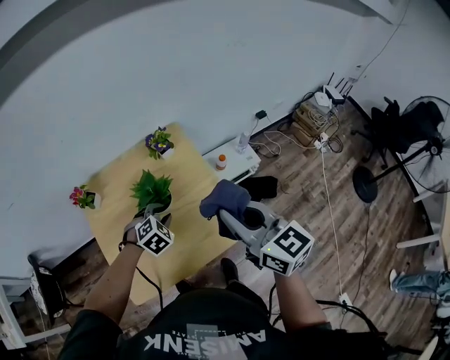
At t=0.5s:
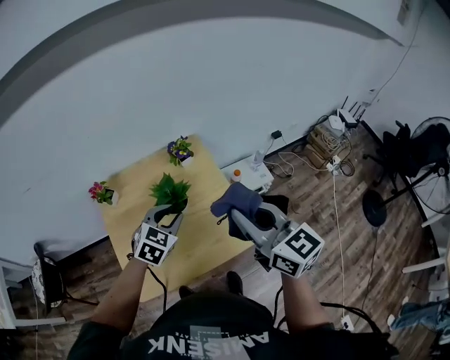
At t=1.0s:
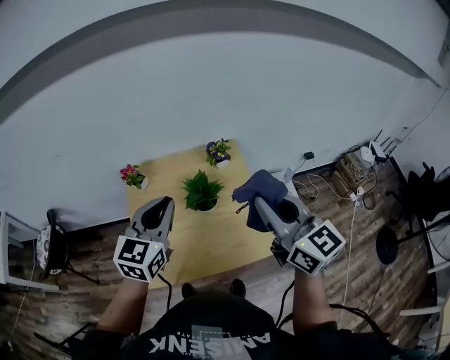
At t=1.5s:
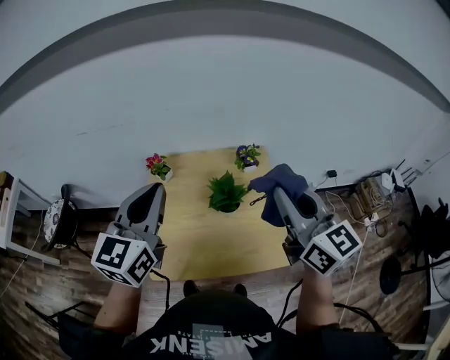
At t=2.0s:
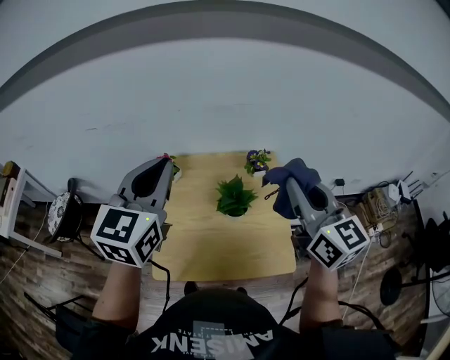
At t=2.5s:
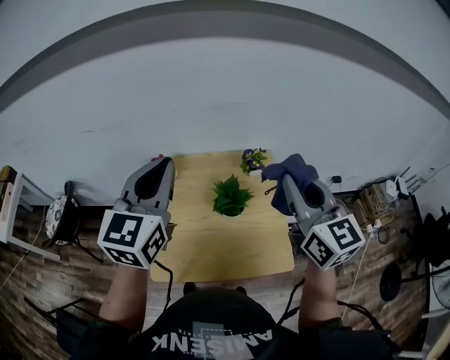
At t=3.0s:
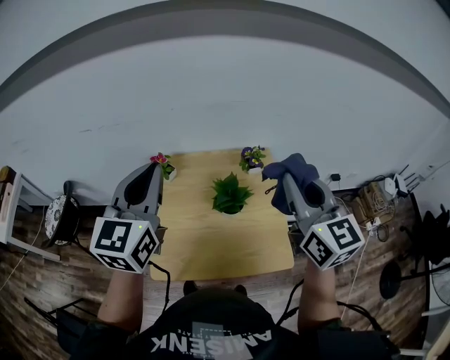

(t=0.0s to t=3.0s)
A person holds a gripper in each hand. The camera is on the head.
t=0.0s - t=1.5s: The right gripper moves upward and to the left, roughly 15 cm; the left gripper goes about 40 cm upward and to the left, angles its fingers upward, by roughly 60 degrees, and closes up.
t=1.5s - t=3.0s: The grippers make only small movements.

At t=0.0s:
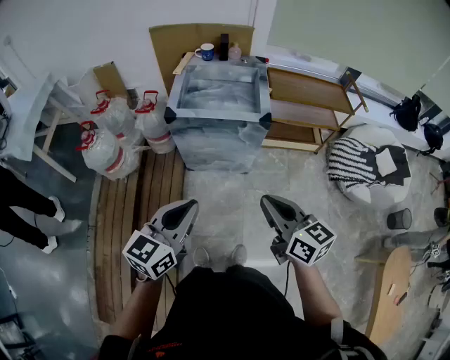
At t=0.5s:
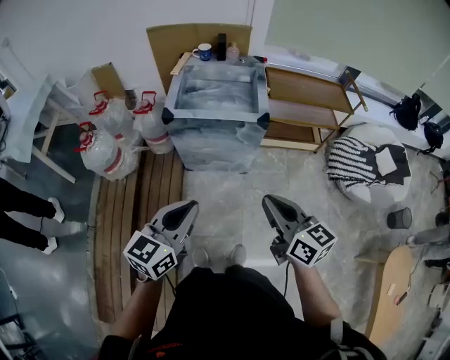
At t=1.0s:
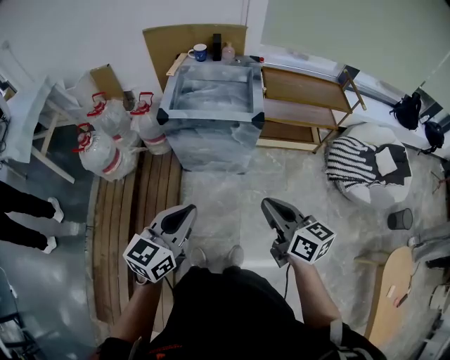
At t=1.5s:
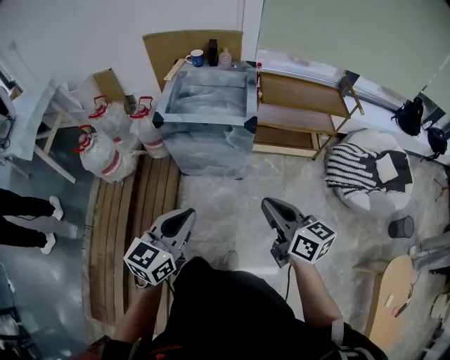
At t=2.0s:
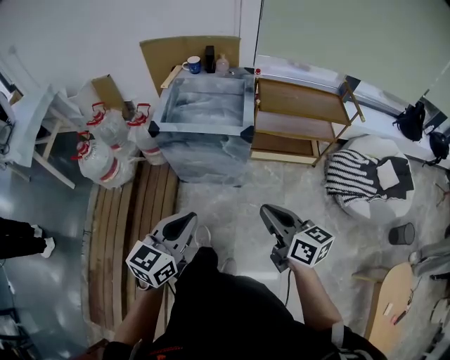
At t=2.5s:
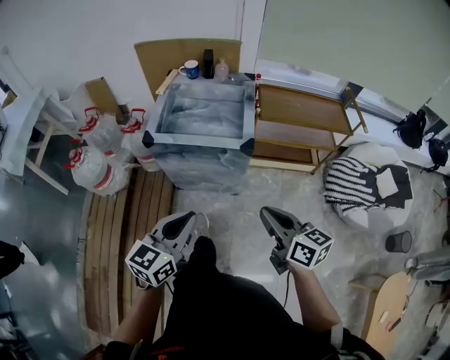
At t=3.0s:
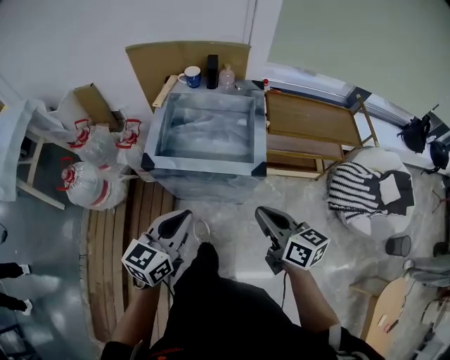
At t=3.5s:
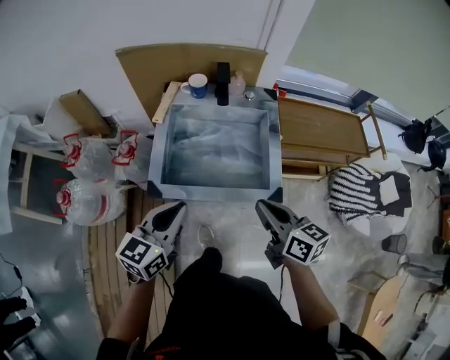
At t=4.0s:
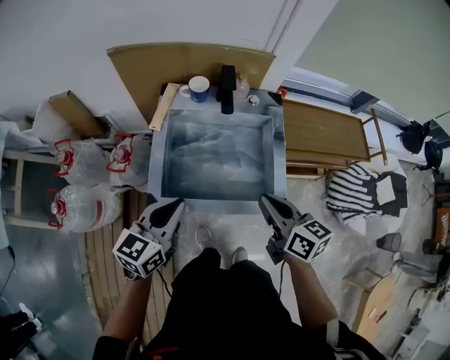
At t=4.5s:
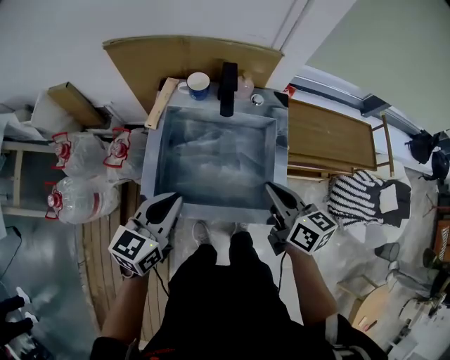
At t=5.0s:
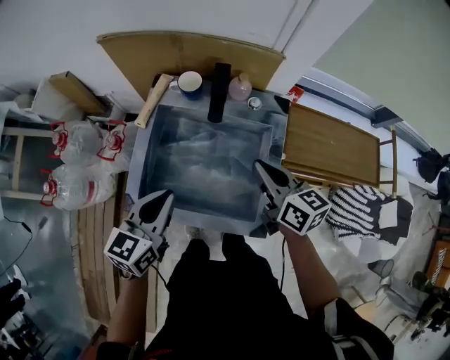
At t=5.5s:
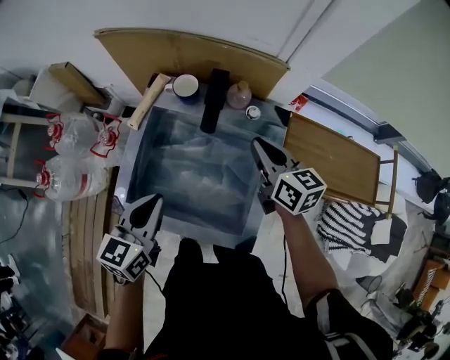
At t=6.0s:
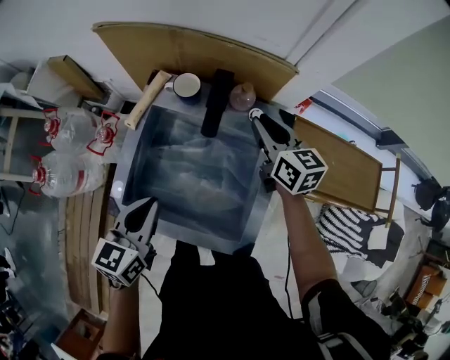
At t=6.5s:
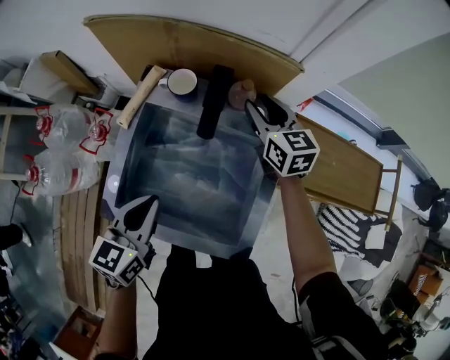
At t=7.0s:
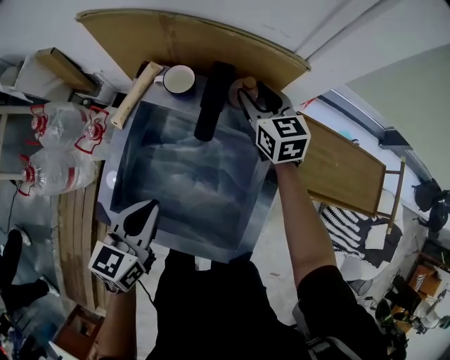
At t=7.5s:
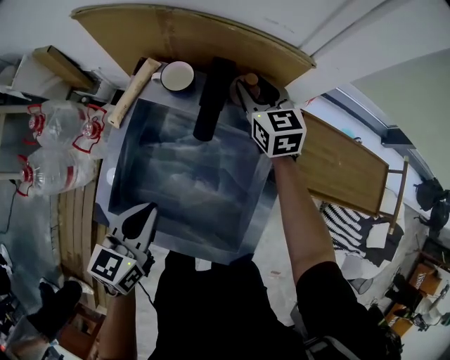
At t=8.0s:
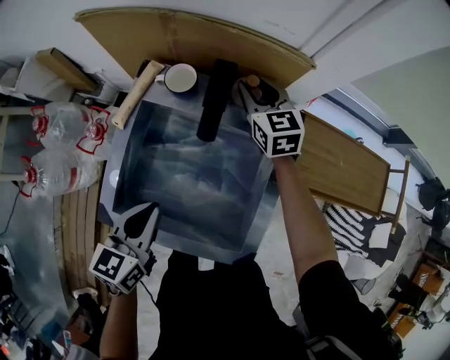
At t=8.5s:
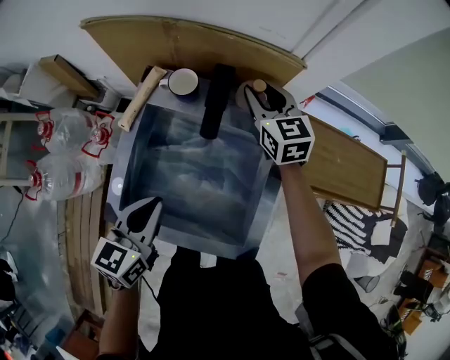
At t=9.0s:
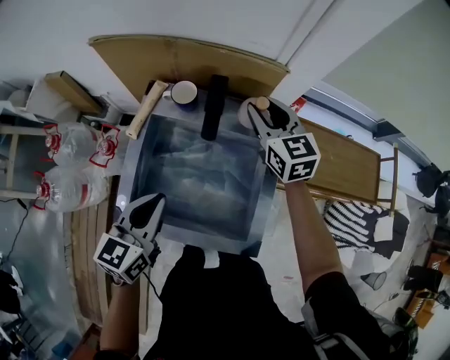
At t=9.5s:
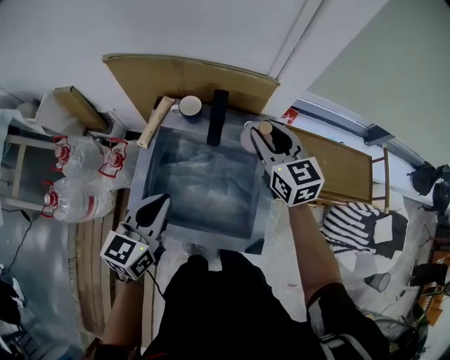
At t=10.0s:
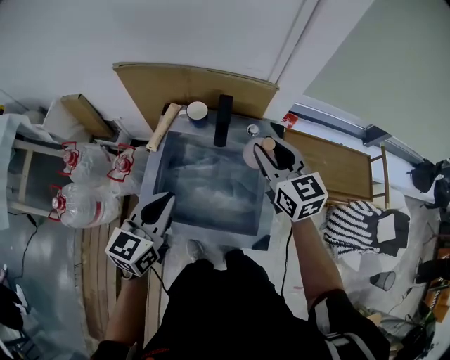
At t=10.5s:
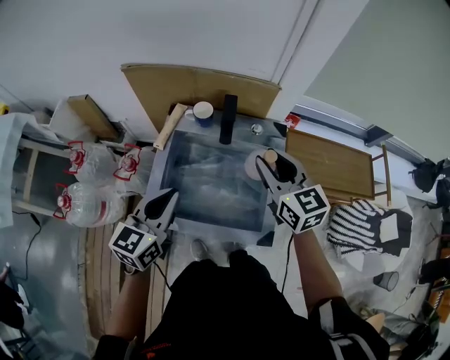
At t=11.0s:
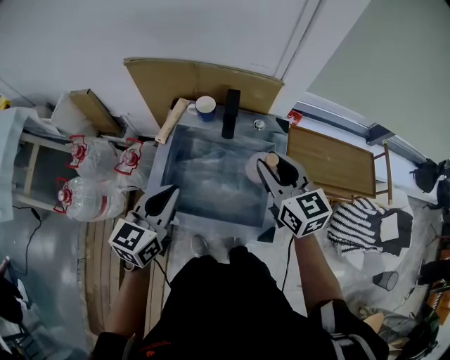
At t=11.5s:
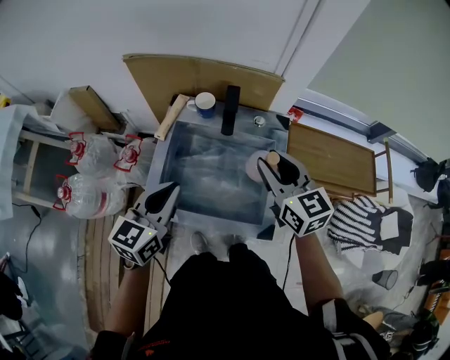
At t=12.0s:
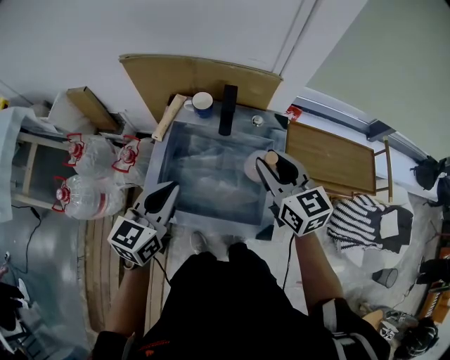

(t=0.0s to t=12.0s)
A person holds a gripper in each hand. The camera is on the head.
t=0.0s - t=2.0s: The grippers both shift to the right by about 10 cm.
t=2.0s - t=4.0s: Both grippers are carried forward, about 50 cm.
t=4.0s - t=6.0s: The right gripper heads forward, covering approximately 35 cm; the left gripper travels forward and to the right by some 10 cm, and swivels approximately 30 degrees.
t=6.0s - t=8.0s: The left gripper shifts by roughly 5 cm. The right gripper heads forward and downward, covering roughly 10 cm, and swivels some 20 degrees.
t=8.0s - t=10.0s: The left gripper travels upward by approximately 15 cm; the right gripper moves backward and upward, about 30 cm.
t=10.0s - t=12.0s: The right gripper goes roughly 5 cm backward.

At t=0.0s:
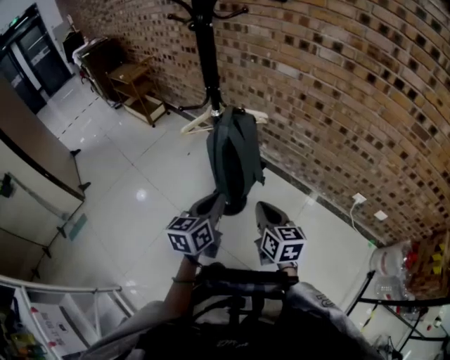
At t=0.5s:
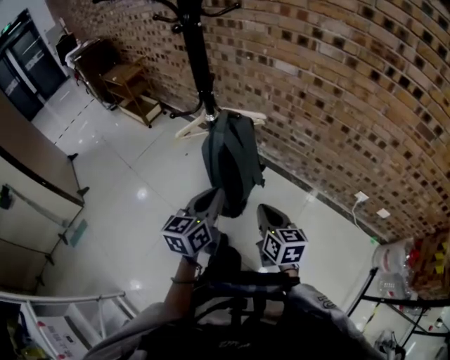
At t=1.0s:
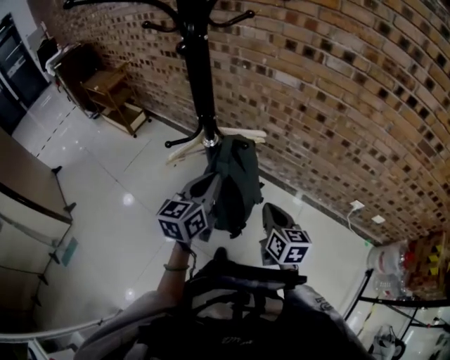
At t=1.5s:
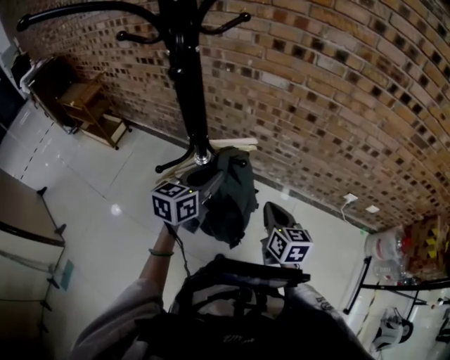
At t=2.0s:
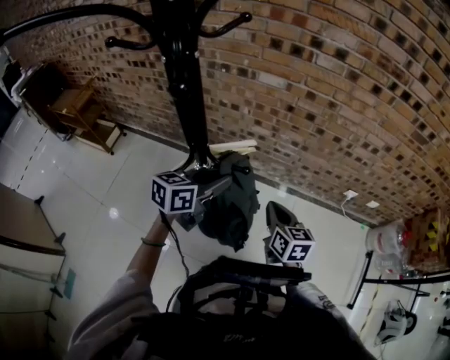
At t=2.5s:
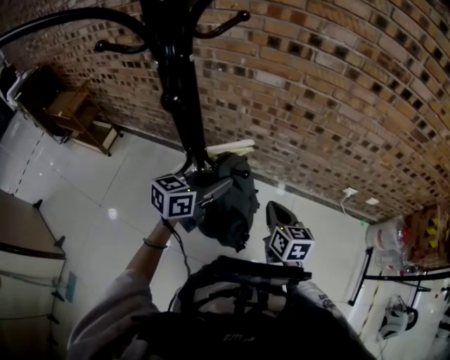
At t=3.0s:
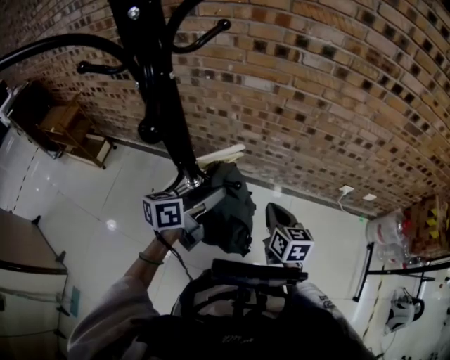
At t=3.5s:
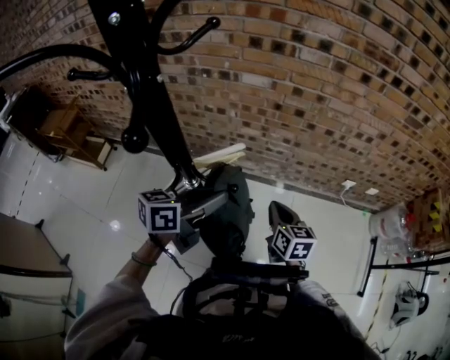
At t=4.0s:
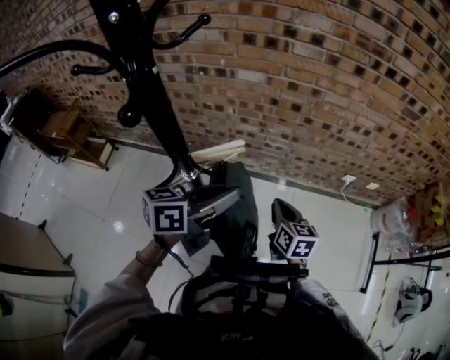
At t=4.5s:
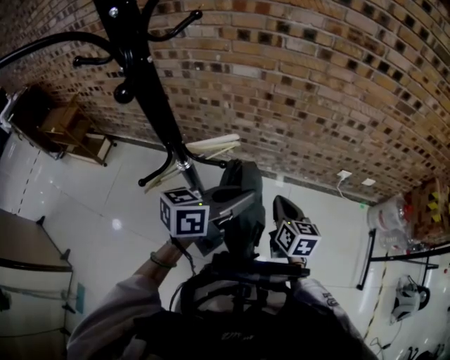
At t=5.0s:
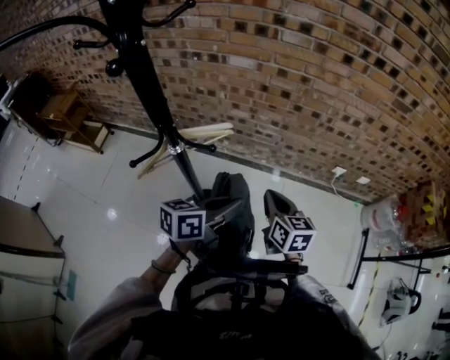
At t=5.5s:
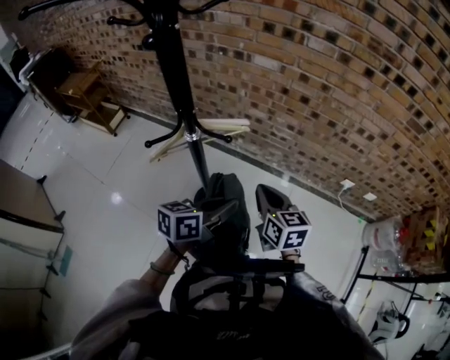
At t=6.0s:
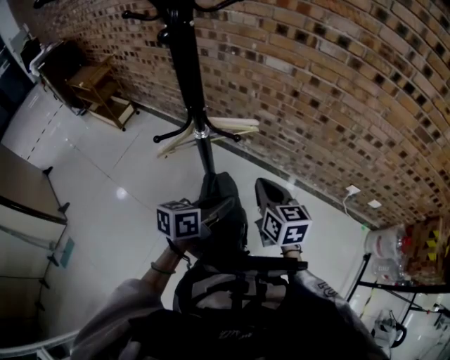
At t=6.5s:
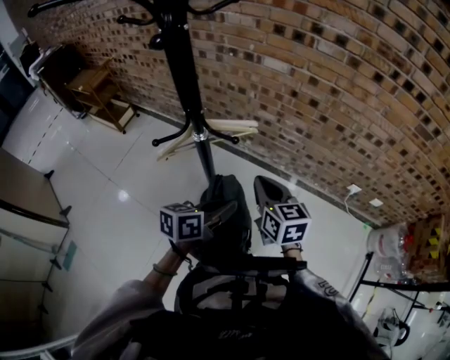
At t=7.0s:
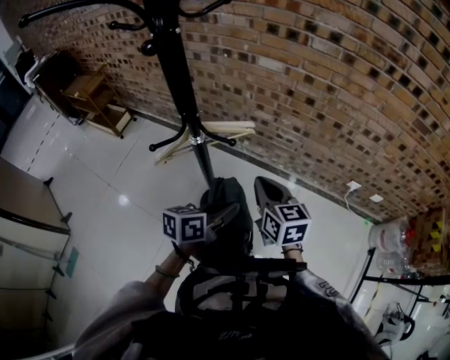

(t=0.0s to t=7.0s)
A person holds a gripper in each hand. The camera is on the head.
t=0.0s - t=2.0s: The left gripper ends up about 30 cm from where it was, rotates about 40 degrees, and opens. Meanwhile the right gripper moves roughly 20 cm, and turns by some 20 degrees.
t=2.0s - t=3.5s: The left gripper changes place by roughly 5 cm.
t=3.5s - t=5.0s: The right gripper is displaced to the right by some 5 cm. Meanwhile the left gripper is displaced to the right by about 15 cm.
t=5.0s - t=7.0s: The left gripper ends up roughly 5 cm from where it was; the right gripper moves to the left, some 10 cm.

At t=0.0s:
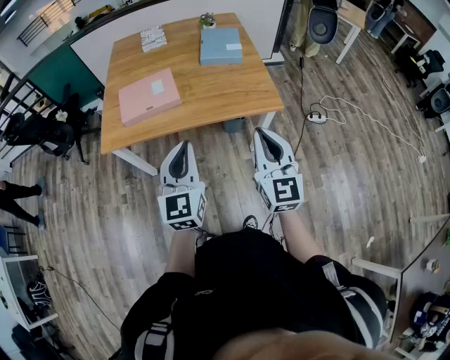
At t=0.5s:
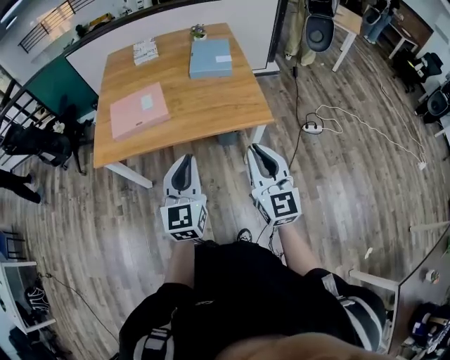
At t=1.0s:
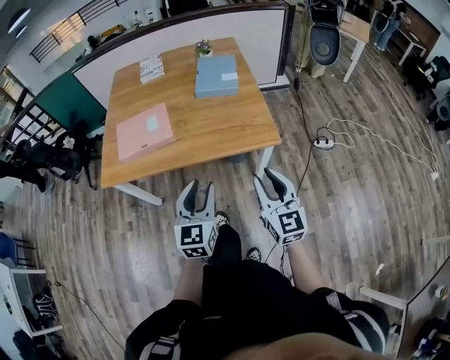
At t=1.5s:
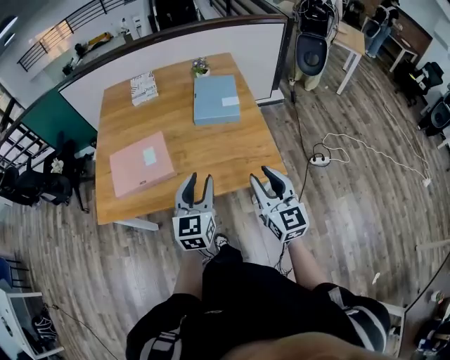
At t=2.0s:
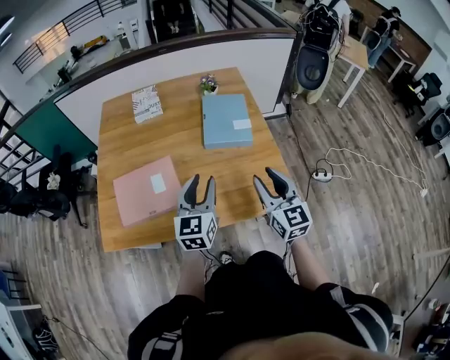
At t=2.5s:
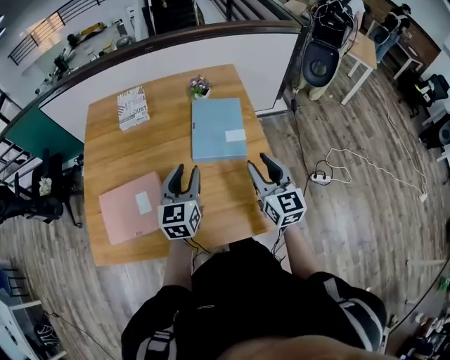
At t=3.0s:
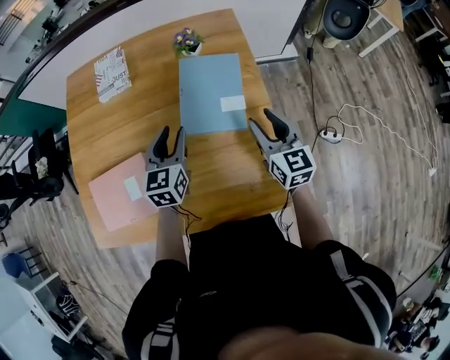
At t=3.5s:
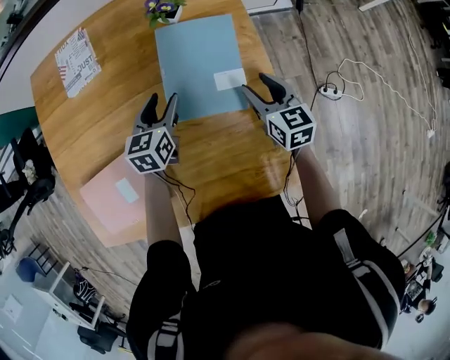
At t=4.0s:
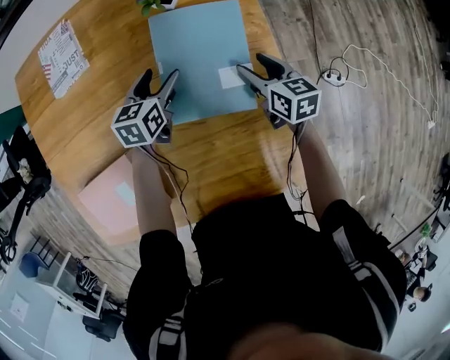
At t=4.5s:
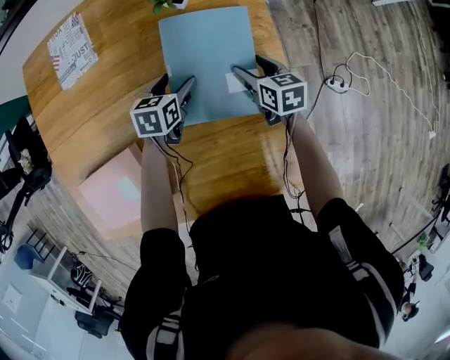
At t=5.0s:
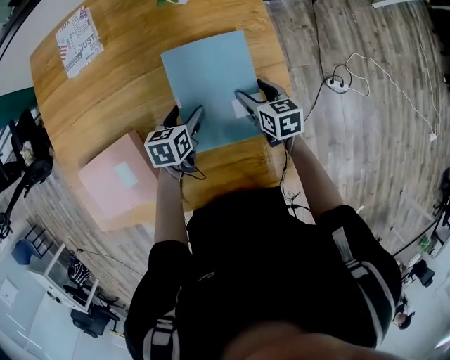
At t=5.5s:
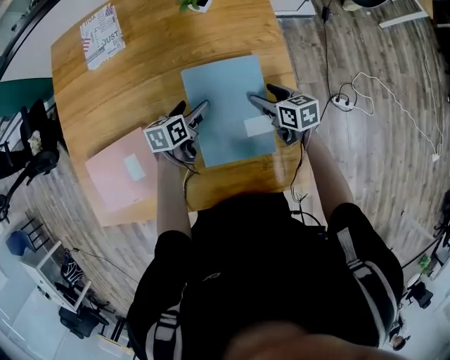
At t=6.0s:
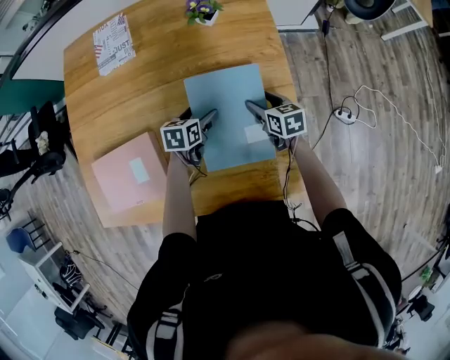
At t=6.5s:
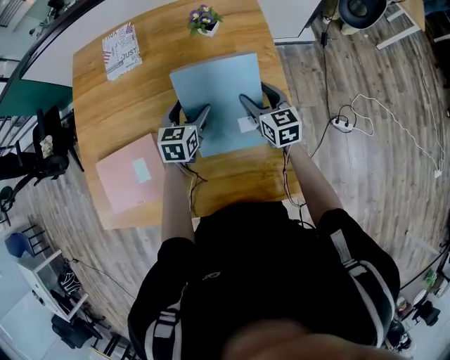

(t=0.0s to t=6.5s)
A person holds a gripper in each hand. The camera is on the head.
t=0.0s - t=2.0s: The two grippers go about 35 cm forward. The right gripper opens up.
t=2.0s - t=4.5s: Both grippers are carried forward, about 40 cm. The two grippers go about 30 cm downward. The left gripper points its fingers about 40 degrees further downward, and opens, while the right gripper angles its fingers downward, by approximately 40 degrees, and opens its fingers.
t=4.5s - t=6.5s: Both grippers move upward and backward, roughly 15 cm. The left gripper changes its angle by some 20 degrees. Meanwhile the right gripper changes its angle by about 20 degrees.
